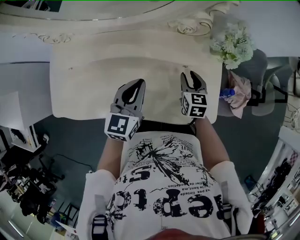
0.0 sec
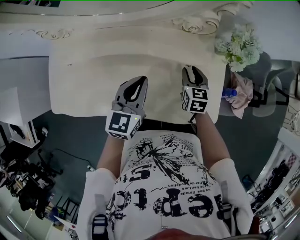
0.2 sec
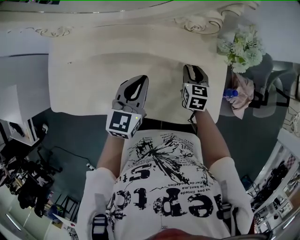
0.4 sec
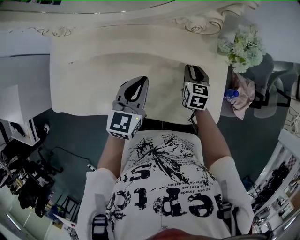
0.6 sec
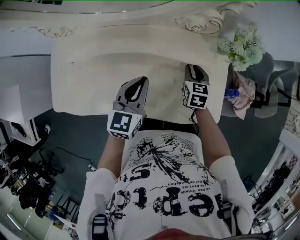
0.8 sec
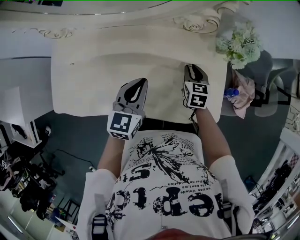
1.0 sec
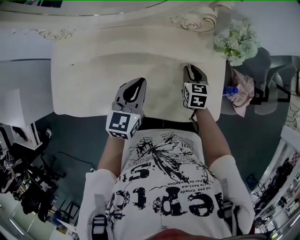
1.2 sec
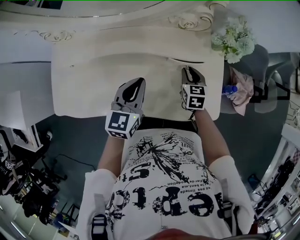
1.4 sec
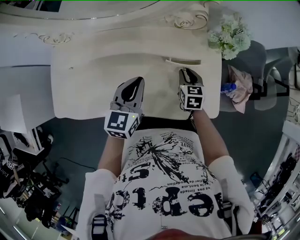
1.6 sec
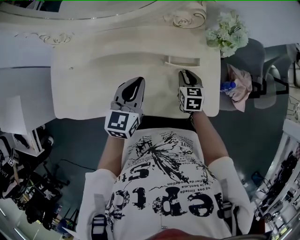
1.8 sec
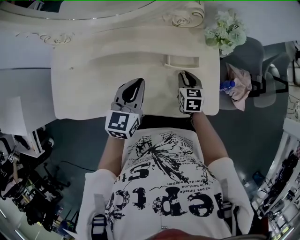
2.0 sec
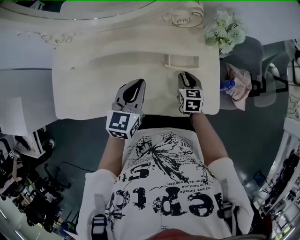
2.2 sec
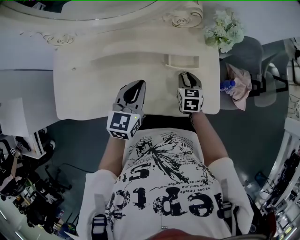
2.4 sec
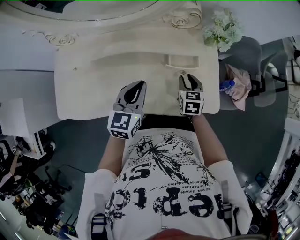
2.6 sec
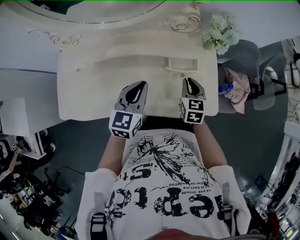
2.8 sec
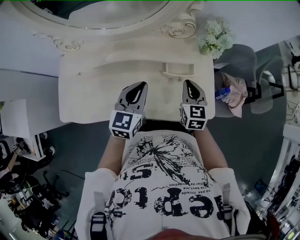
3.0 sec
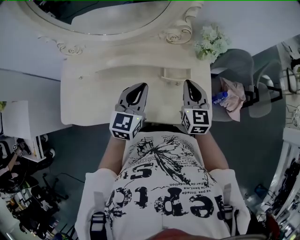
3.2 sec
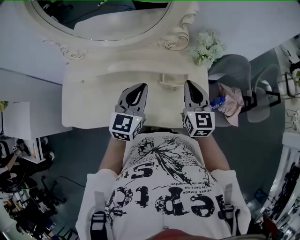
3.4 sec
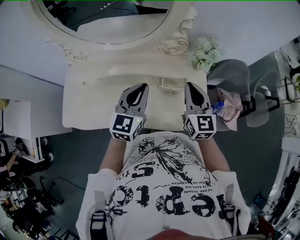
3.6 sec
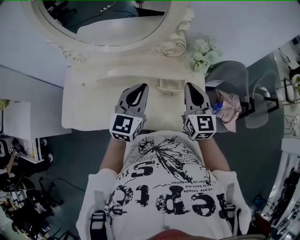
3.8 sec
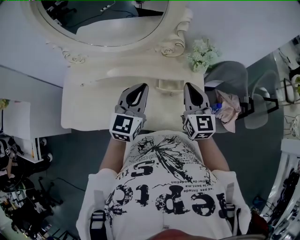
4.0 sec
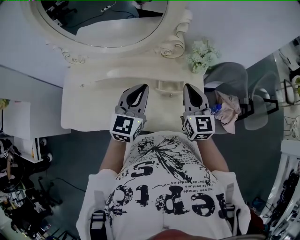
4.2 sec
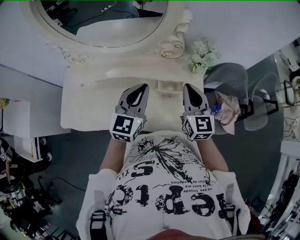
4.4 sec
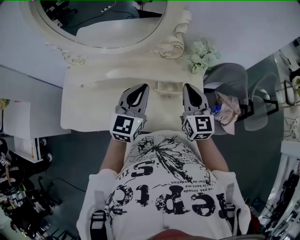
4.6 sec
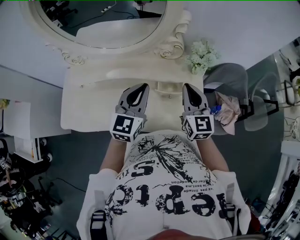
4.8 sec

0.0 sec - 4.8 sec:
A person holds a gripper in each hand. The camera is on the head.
0.0 sec - 1.6 sec: There are only small adjustments of the grippers.
1.6 sec - 3.2 sec: The right gripper travels upward by about 20 cm, turns by some 20 degrees, and closes its fingers, while the left gripper is displaced upward by approximately 5 cm.
3.2 sec - 4.8 sec: The two grippers go about 5 cm upward.

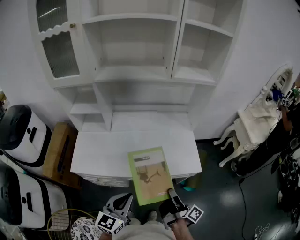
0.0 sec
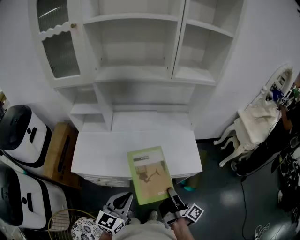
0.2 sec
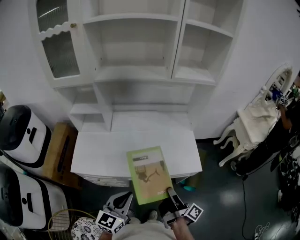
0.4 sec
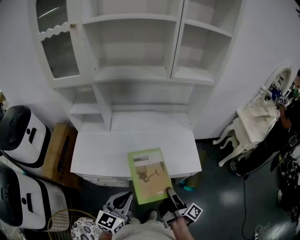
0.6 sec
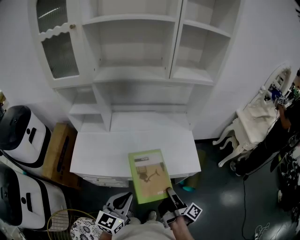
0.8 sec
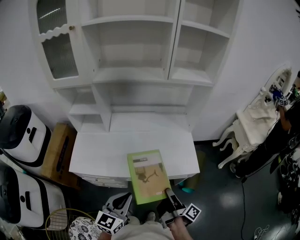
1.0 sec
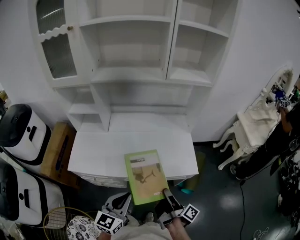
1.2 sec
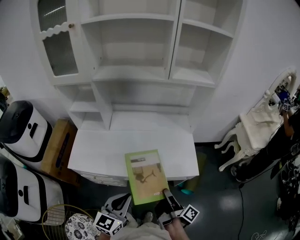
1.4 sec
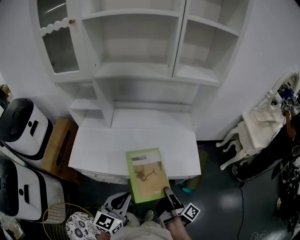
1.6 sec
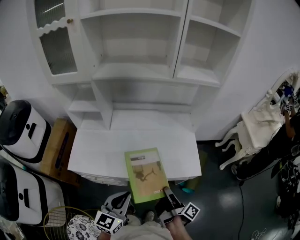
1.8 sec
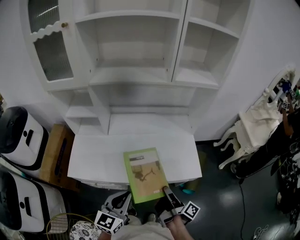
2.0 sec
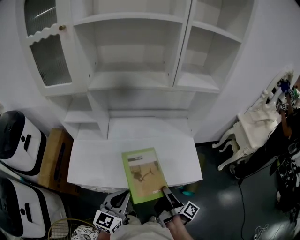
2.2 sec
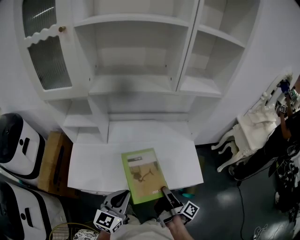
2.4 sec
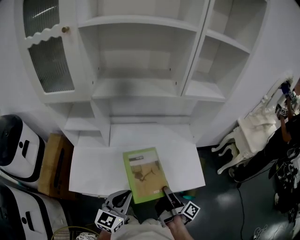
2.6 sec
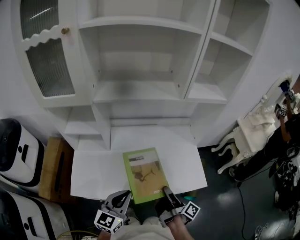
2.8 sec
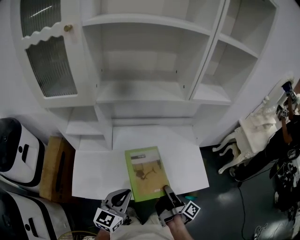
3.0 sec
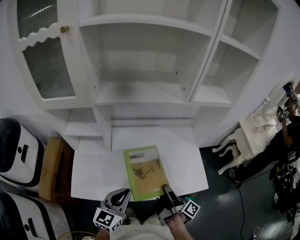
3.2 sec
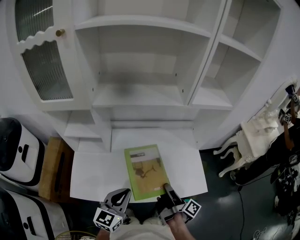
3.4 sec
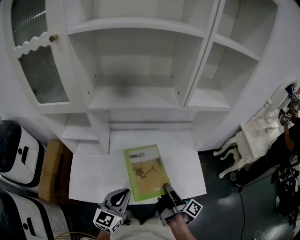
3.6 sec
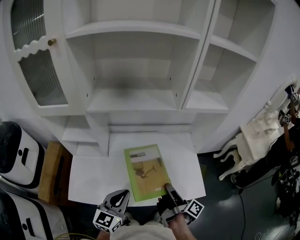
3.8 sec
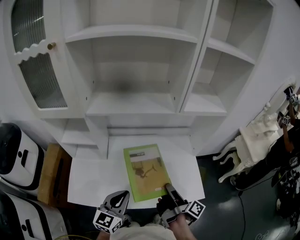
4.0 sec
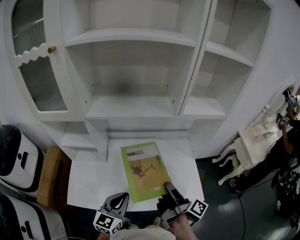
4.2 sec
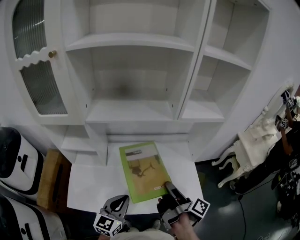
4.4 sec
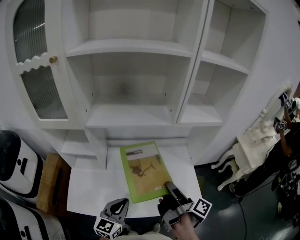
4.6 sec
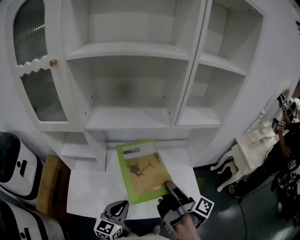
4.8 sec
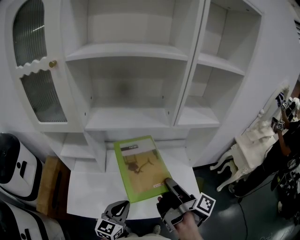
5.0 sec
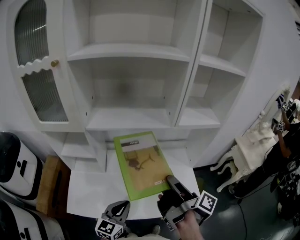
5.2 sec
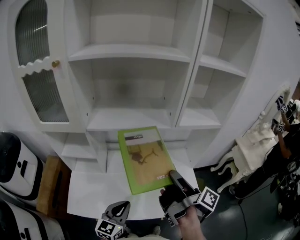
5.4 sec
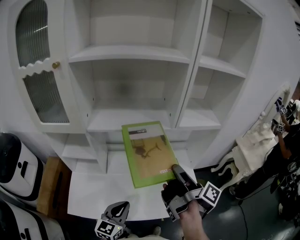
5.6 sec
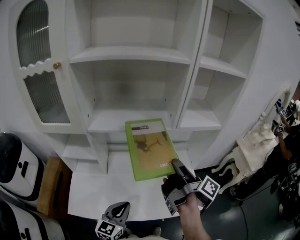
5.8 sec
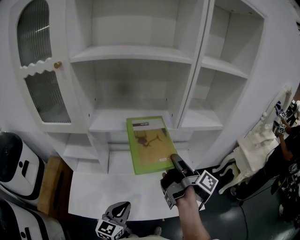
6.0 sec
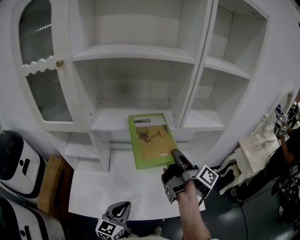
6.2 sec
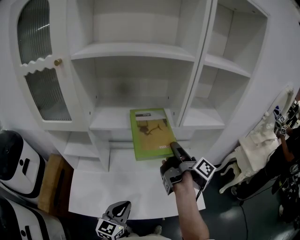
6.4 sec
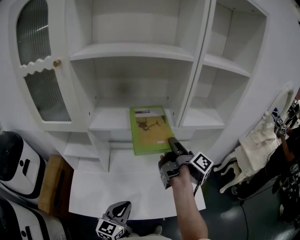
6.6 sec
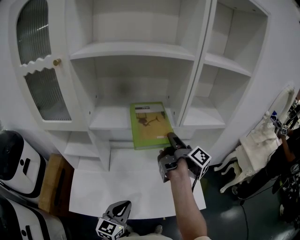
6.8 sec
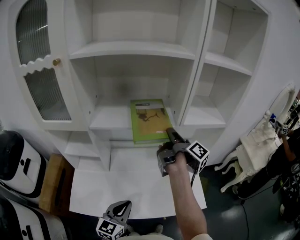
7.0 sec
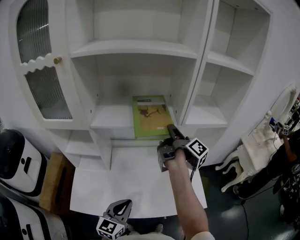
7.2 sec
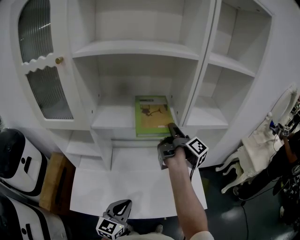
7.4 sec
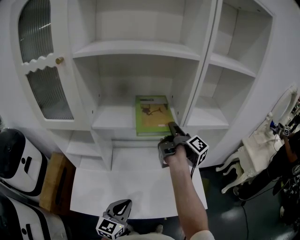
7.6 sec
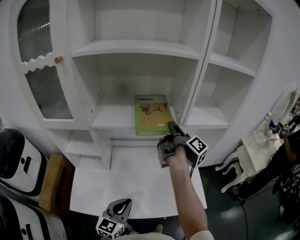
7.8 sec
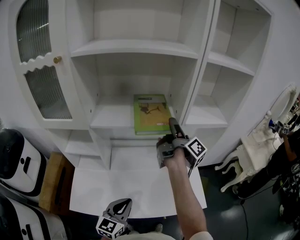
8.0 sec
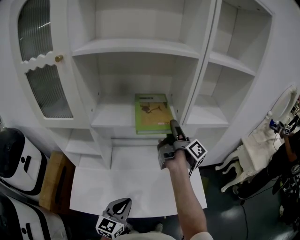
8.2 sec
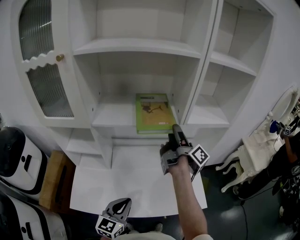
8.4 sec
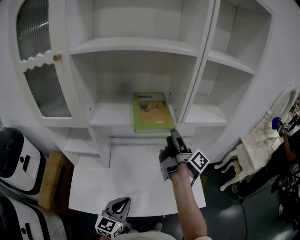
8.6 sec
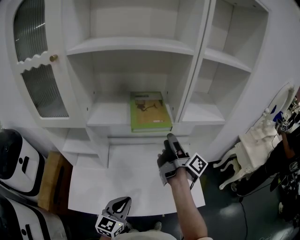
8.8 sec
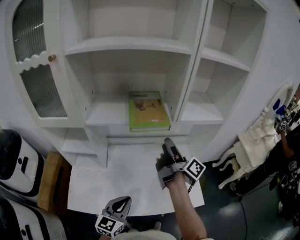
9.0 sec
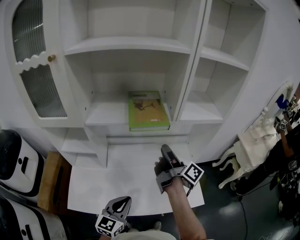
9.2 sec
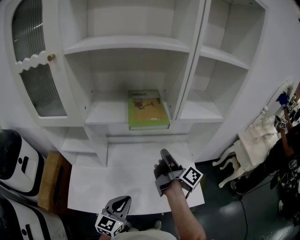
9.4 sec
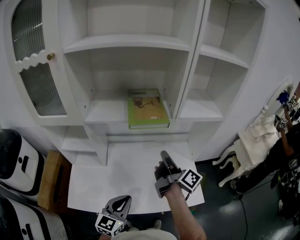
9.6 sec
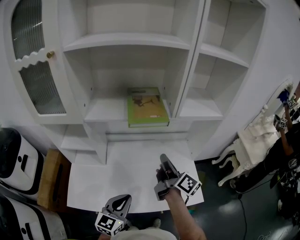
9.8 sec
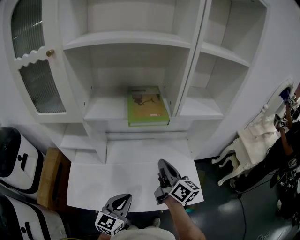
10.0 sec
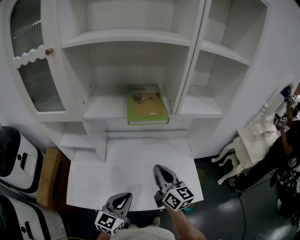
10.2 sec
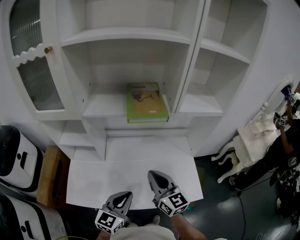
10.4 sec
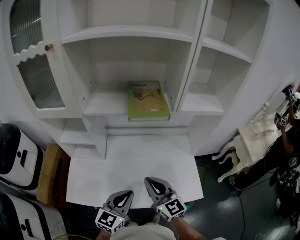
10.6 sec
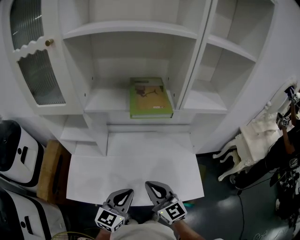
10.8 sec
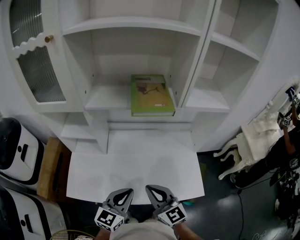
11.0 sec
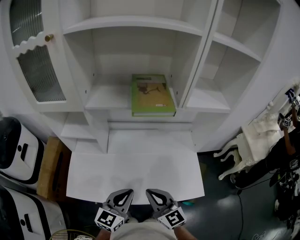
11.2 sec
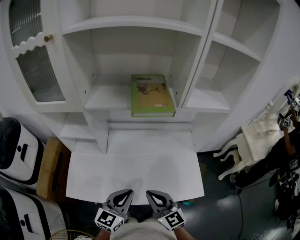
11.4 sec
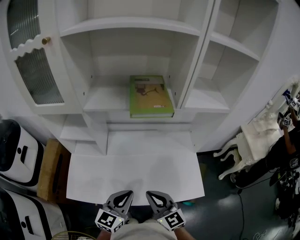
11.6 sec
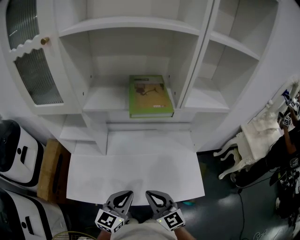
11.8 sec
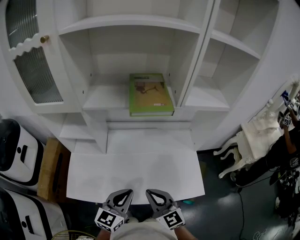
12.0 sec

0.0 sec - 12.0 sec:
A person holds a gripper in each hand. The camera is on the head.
1.6 sec - 3.0 sec: The left gripper changes place by about 20 cm.
3.0 sec - 4.4 sec: The left gripper moves about 5 cm.

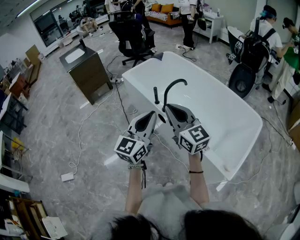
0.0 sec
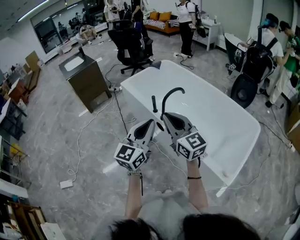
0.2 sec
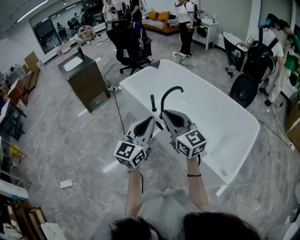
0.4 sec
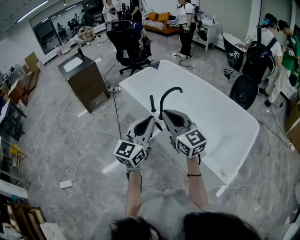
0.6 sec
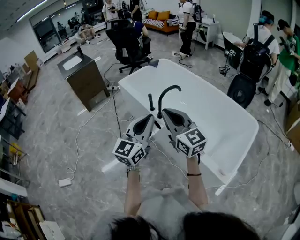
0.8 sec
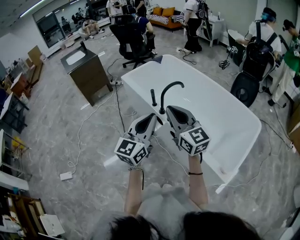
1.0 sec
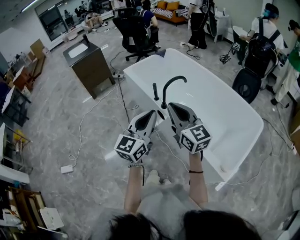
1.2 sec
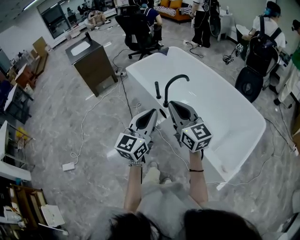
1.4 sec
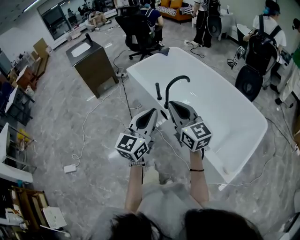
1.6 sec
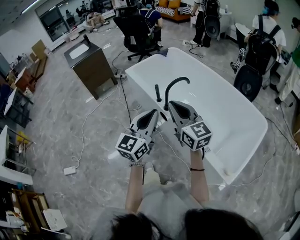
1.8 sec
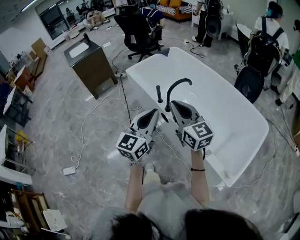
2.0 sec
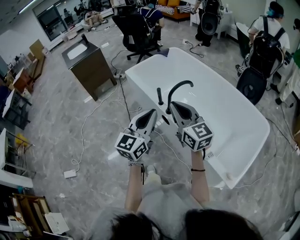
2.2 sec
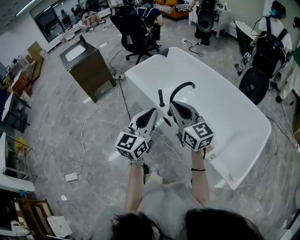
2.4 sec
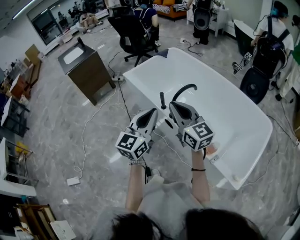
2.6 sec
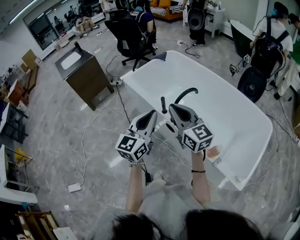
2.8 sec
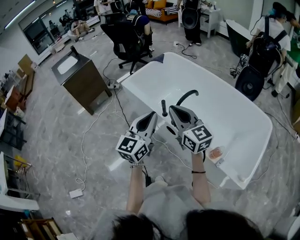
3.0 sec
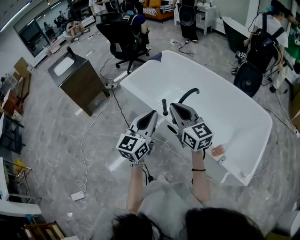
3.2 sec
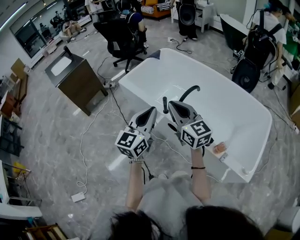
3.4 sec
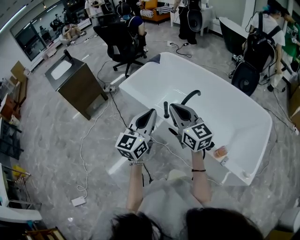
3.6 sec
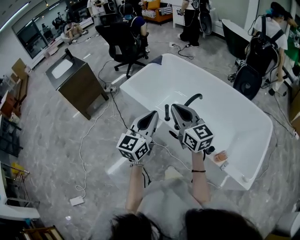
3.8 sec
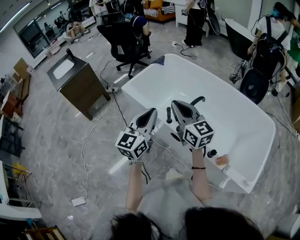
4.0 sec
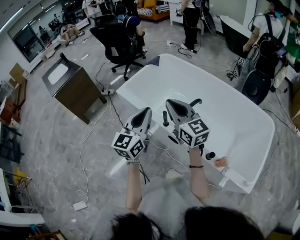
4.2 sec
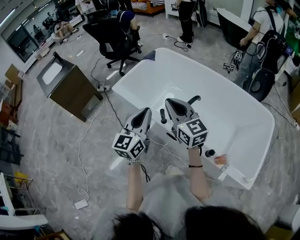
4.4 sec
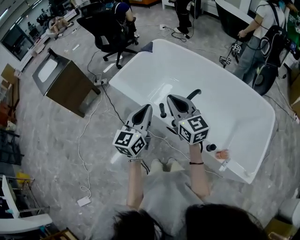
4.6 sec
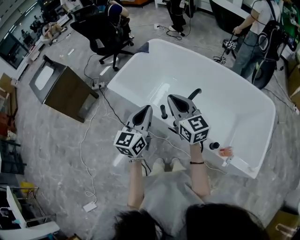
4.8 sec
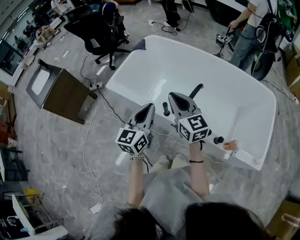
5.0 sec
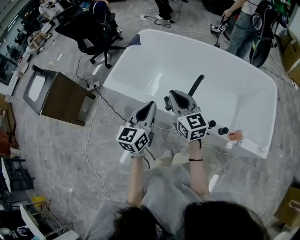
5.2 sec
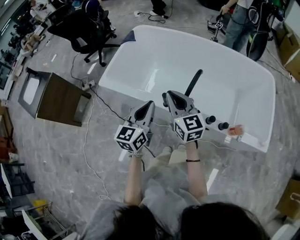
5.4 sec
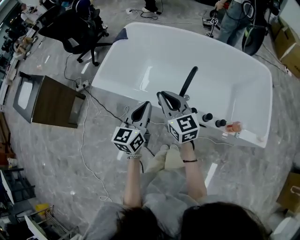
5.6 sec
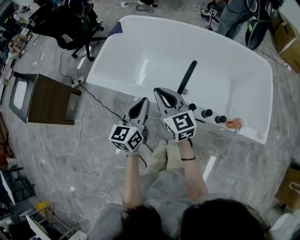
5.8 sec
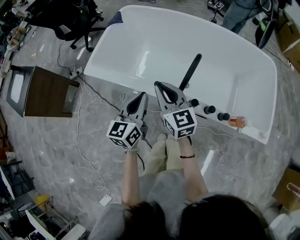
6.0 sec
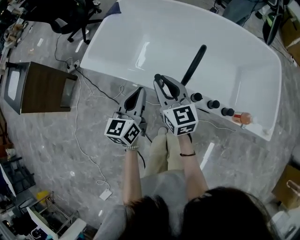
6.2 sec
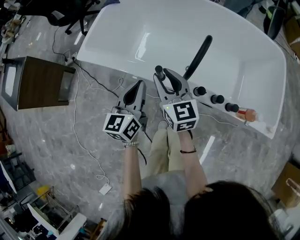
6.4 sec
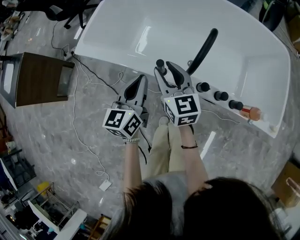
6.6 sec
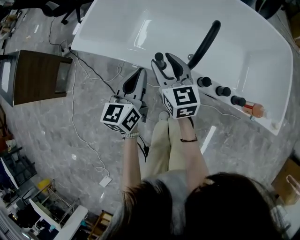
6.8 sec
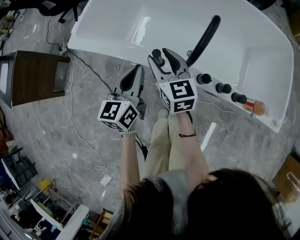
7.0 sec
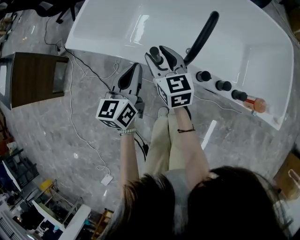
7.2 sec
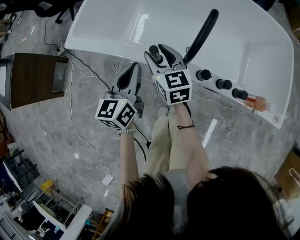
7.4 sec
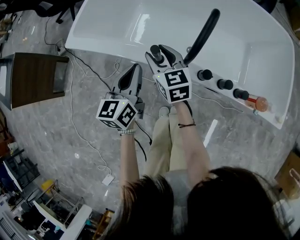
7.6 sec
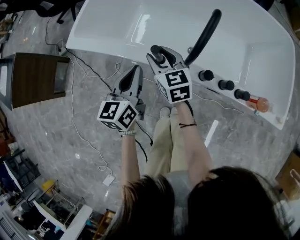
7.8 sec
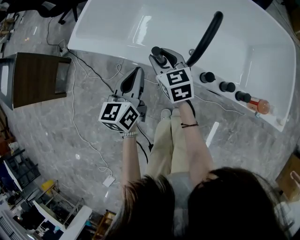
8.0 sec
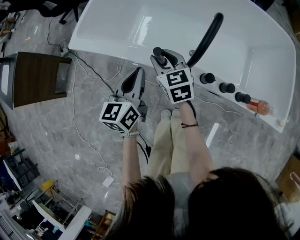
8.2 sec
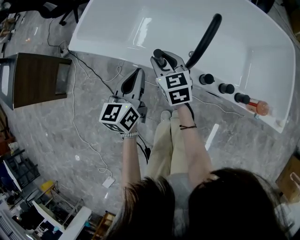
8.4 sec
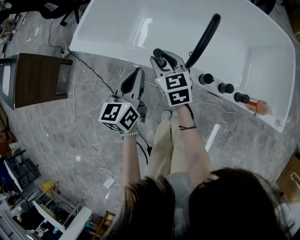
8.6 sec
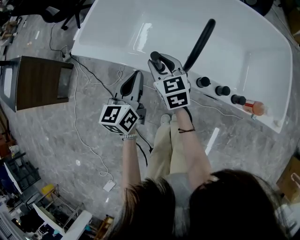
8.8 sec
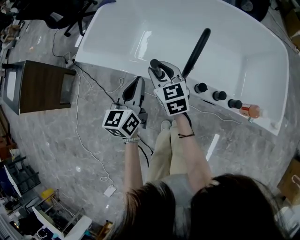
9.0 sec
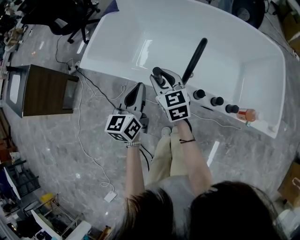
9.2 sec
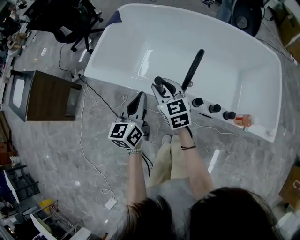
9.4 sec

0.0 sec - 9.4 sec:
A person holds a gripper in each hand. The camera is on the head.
0.0 sec - 1.6 sec: The grippers make only small movements.
1.6 sec - 3.2 sec: Both grippers travel together forward and to the left, roughly 20 cm.
3.2 sec - 4.8 sec: The grippers both shift forward by about 15 cm.
4.8 sec - 6.2 sec: Both grippers move downward, about 15 cm.
6.2 sec - 7.8 sec: The right gripper is displaced downward by about 15 cm, and opens up; the left gripper is displaced downward by approximately 10 cm.
7.8 sec - 9.4 sec: The grippers both shift upward by approximately 10 cm.
